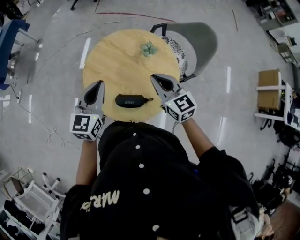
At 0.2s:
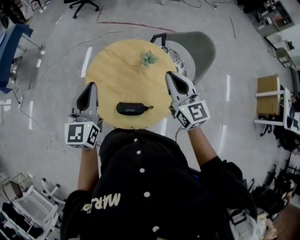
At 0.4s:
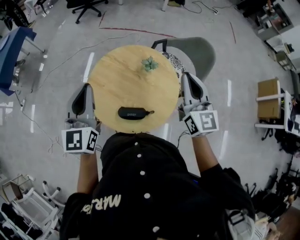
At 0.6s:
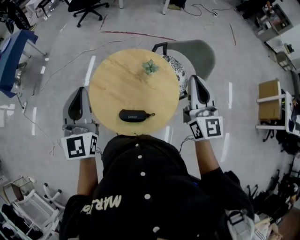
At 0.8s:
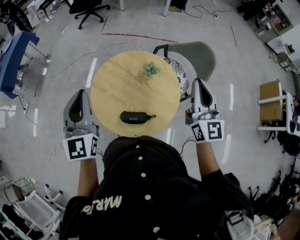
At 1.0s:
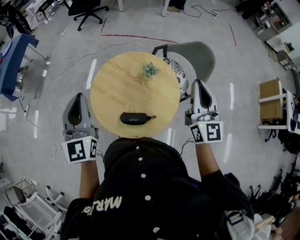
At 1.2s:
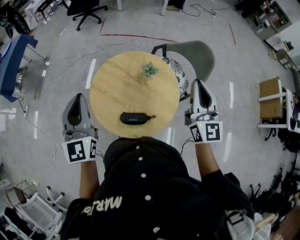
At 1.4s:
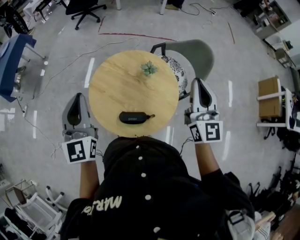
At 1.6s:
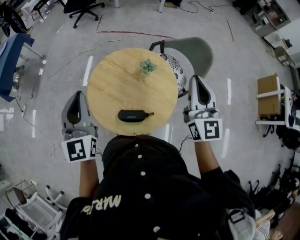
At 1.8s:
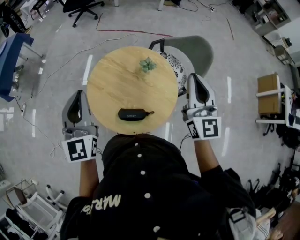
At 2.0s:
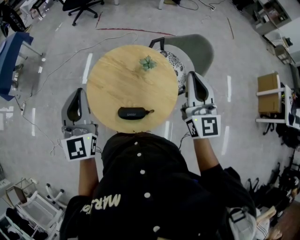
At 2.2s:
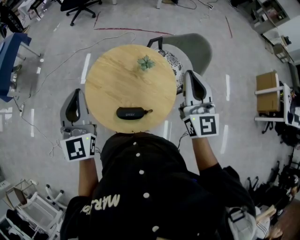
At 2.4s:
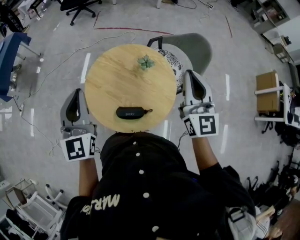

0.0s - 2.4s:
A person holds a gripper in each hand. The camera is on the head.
0.0s - 1.2s: The right gripper travels upward and to the right by approximately 25 cm, and swivels some 40 degrees. Meanwhile the left gripper is displaced upward by roughly 15 cm, and changes its angle by some 30 degrees.
1.2s - 2.4s: The grippers stay close to where they were, moving slightly.

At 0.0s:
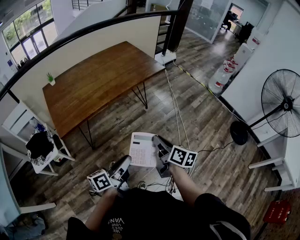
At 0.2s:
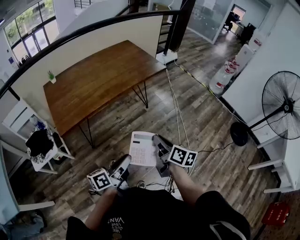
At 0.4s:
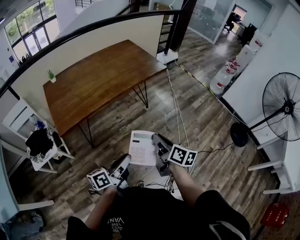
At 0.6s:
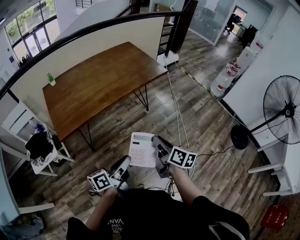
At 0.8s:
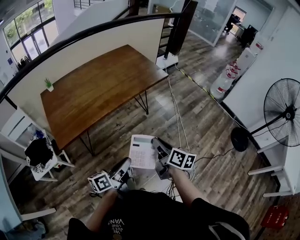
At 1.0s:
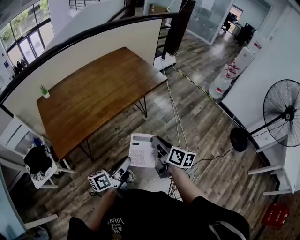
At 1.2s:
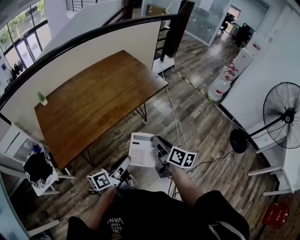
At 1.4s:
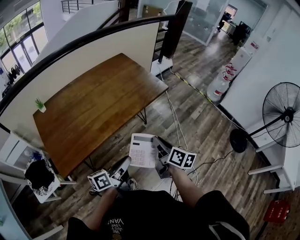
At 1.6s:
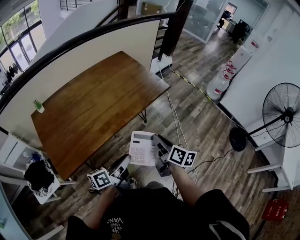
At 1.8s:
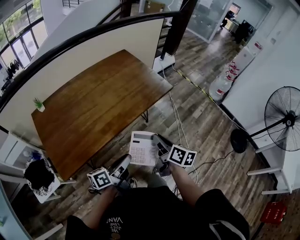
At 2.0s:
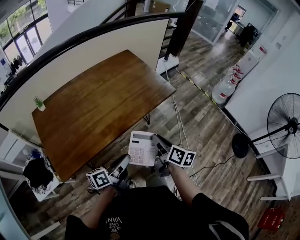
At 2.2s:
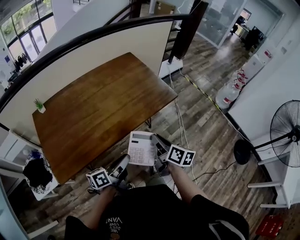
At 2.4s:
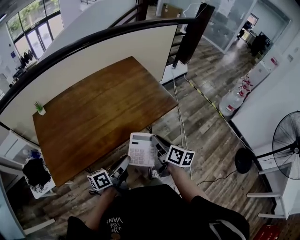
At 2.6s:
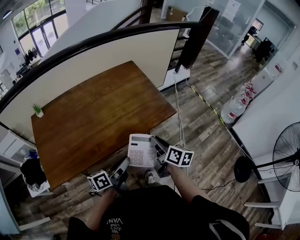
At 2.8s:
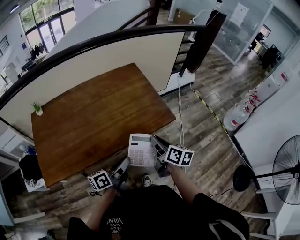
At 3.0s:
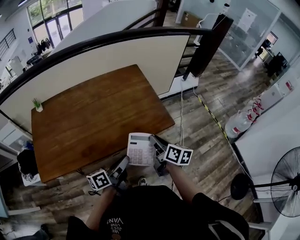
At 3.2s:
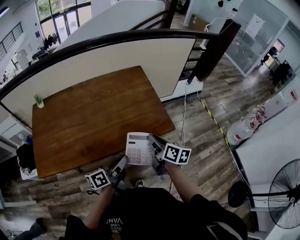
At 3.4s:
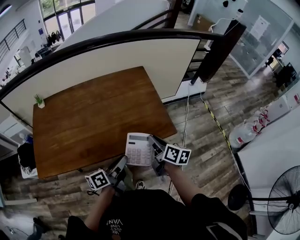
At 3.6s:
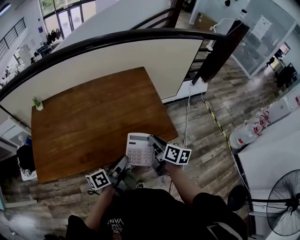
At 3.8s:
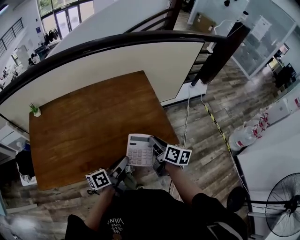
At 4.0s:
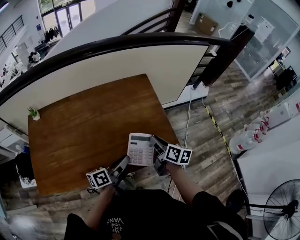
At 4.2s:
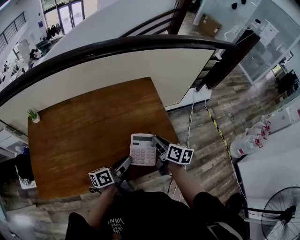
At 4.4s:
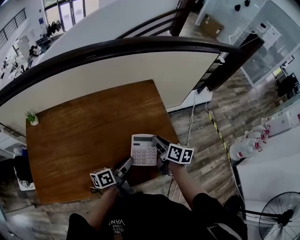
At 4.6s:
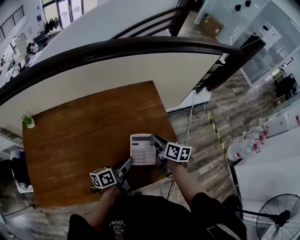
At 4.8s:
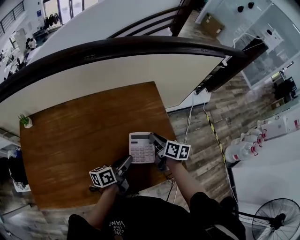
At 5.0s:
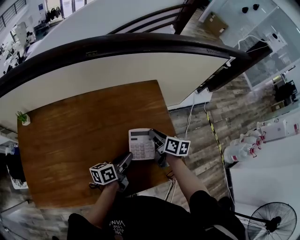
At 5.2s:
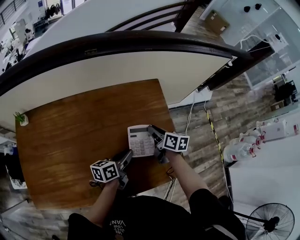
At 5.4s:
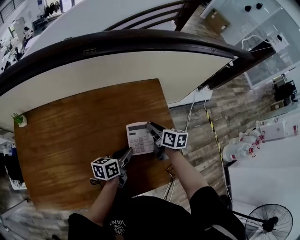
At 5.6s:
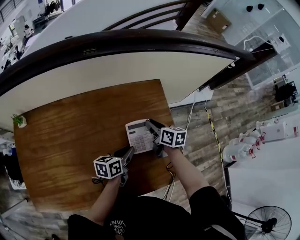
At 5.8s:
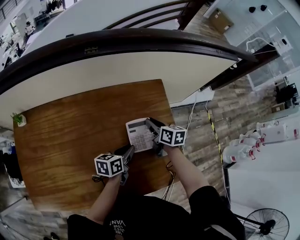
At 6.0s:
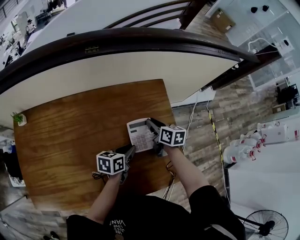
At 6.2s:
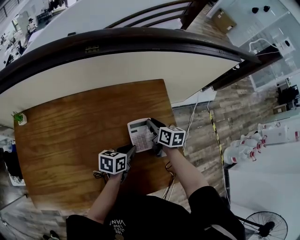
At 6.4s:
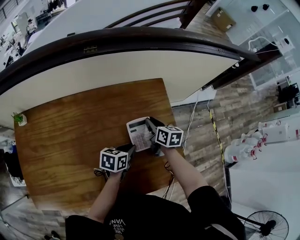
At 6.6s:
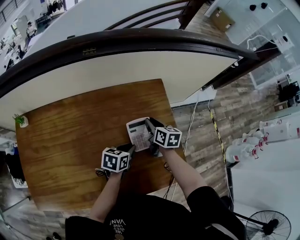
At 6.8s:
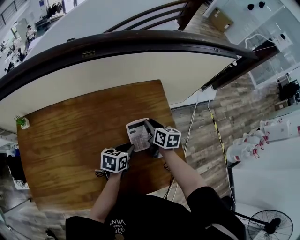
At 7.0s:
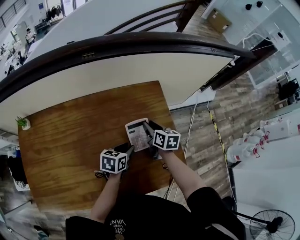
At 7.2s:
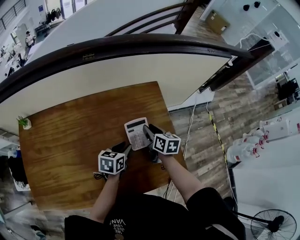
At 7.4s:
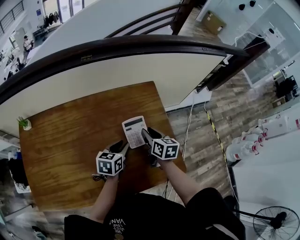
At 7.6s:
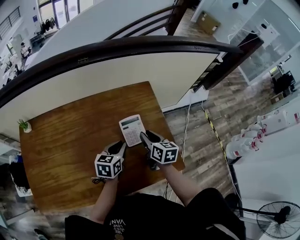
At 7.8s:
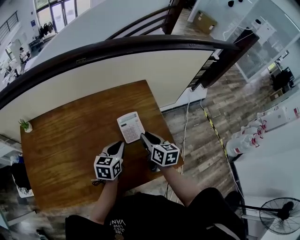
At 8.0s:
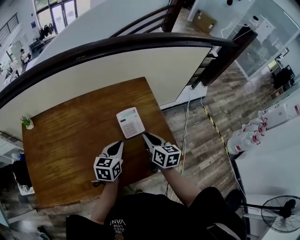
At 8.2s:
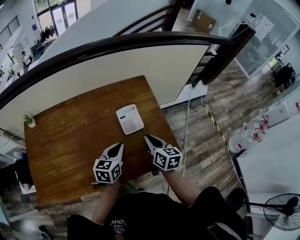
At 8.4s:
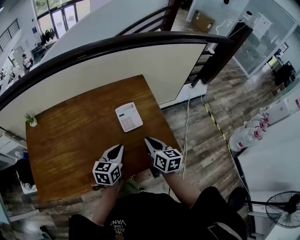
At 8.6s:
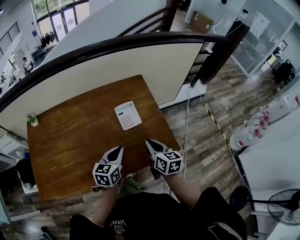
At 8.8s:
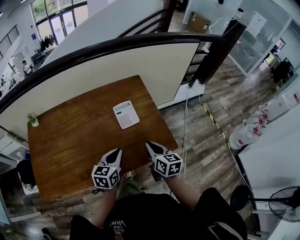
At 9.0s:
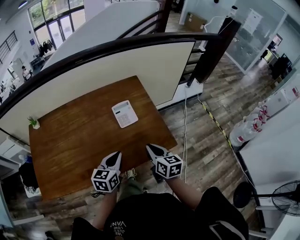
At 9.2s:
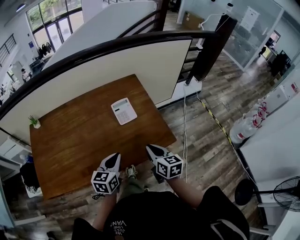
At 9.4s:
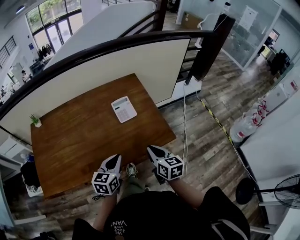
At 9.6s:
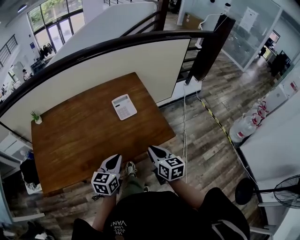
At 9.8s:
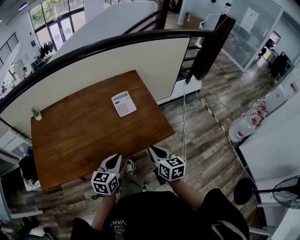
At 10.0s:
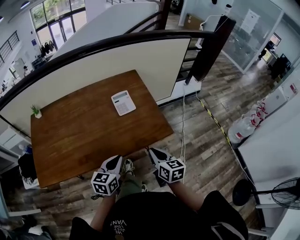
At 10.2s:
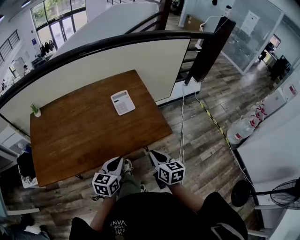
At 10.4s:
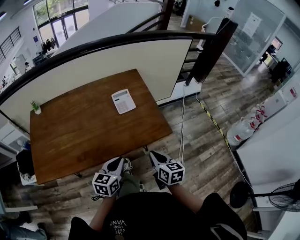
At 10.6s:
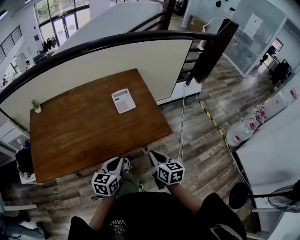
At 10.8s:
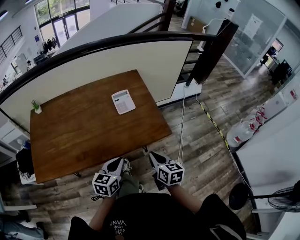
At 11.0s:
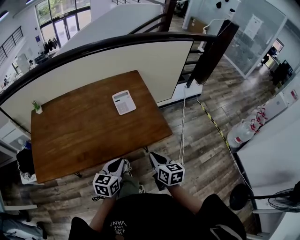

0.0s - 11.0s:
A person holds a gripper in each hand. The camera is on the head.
0.0s - 1.6s: Both grippers travel together forward, about 25 cm.
1.6s - 3.2s: The left gripper goes roughly 25 cm forward and to the right, and turns by some 20 degrees. The right gripper moves forward, some 30 cm, and rotates about 30 degrees.
3.2s - 4.8s: The grippers both shift forward by roughly 25 cm.
4.8s - 6.2s: The right gripper moves forward, approximately 10 cm. The left gripper shifts approximately 10 cm forward and downward, and swivels approximately 30 degrees.
6.2s - 7.8s: The right gripper moves backward and upward, roughly 15 cm, while the left gripper moves upward, roughly 5 cm, and turns by approximately 30 degrees.
7.8s - 9.4s: The grippers both shift backward by roughly 20 cm.
9.4s - 11.0s: The two grippers go about 5 cm backward.

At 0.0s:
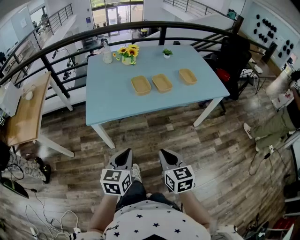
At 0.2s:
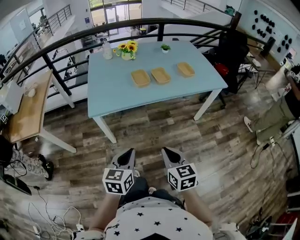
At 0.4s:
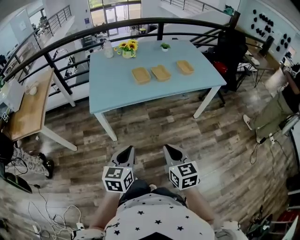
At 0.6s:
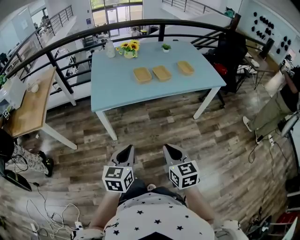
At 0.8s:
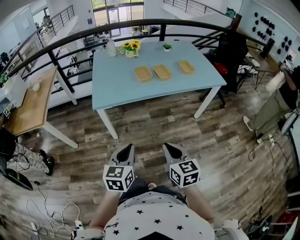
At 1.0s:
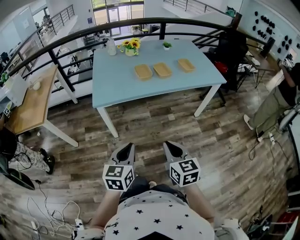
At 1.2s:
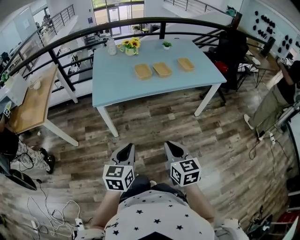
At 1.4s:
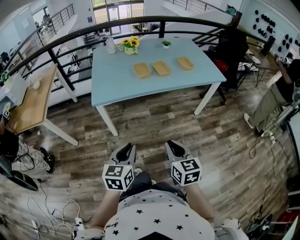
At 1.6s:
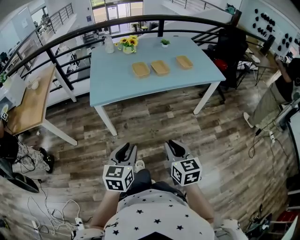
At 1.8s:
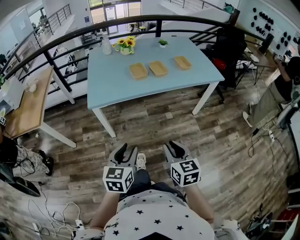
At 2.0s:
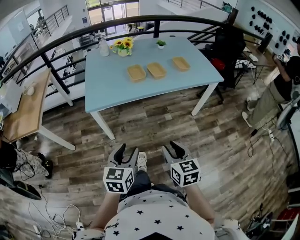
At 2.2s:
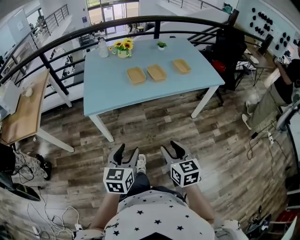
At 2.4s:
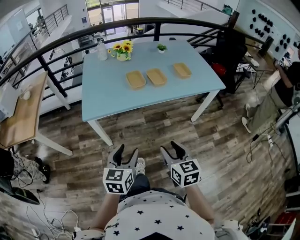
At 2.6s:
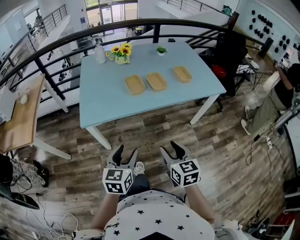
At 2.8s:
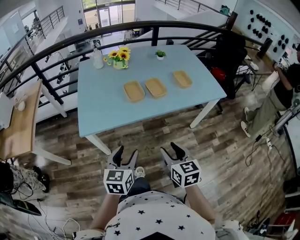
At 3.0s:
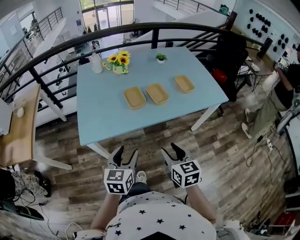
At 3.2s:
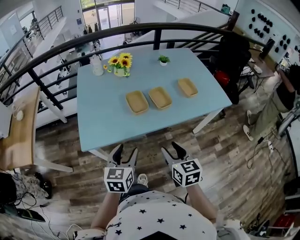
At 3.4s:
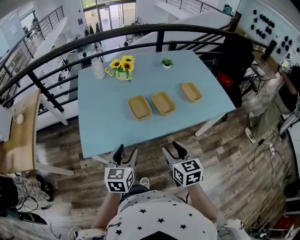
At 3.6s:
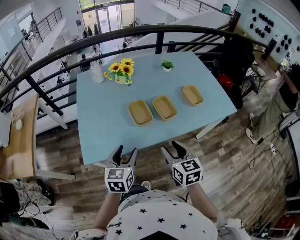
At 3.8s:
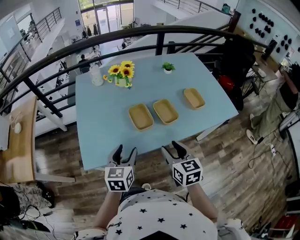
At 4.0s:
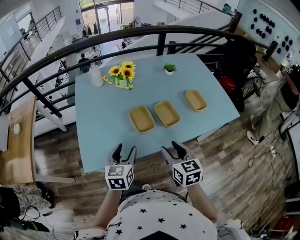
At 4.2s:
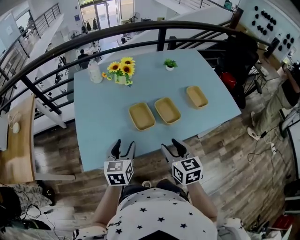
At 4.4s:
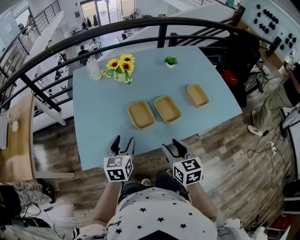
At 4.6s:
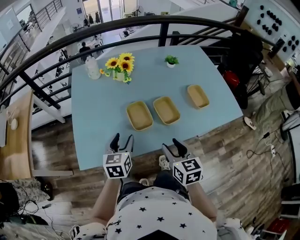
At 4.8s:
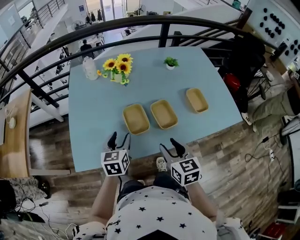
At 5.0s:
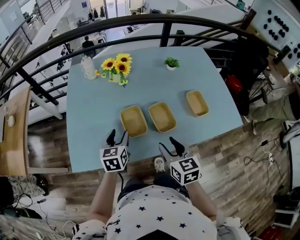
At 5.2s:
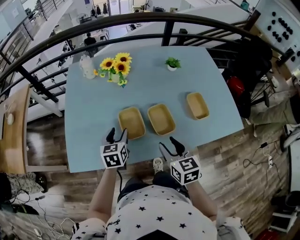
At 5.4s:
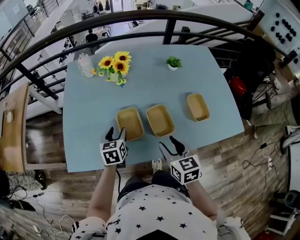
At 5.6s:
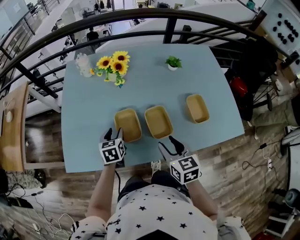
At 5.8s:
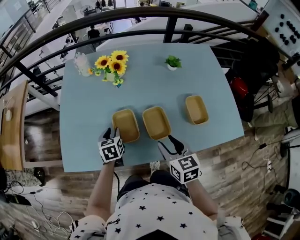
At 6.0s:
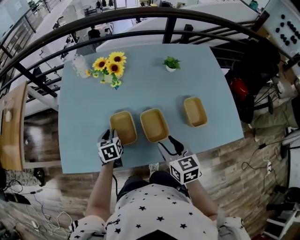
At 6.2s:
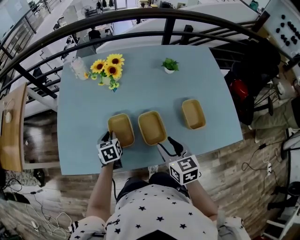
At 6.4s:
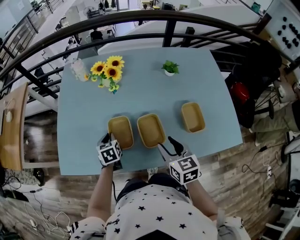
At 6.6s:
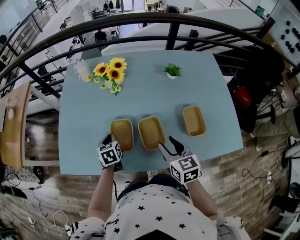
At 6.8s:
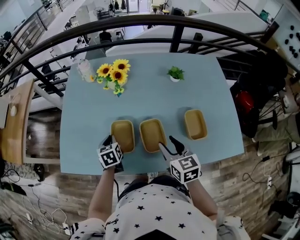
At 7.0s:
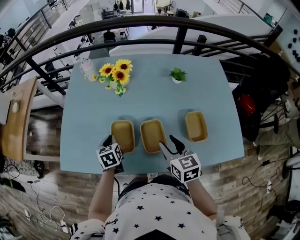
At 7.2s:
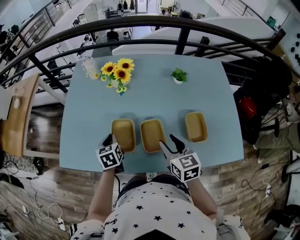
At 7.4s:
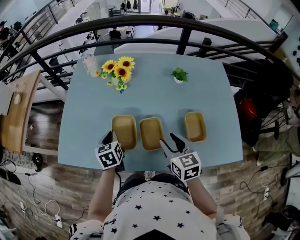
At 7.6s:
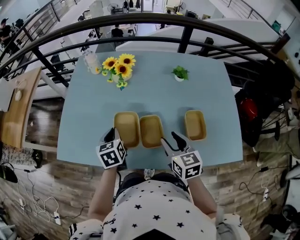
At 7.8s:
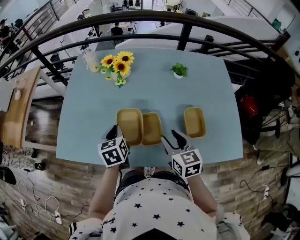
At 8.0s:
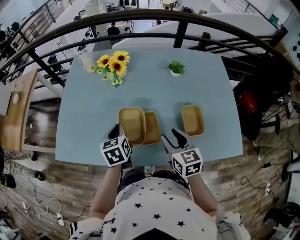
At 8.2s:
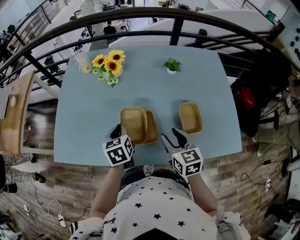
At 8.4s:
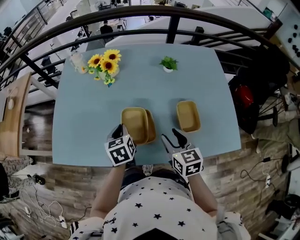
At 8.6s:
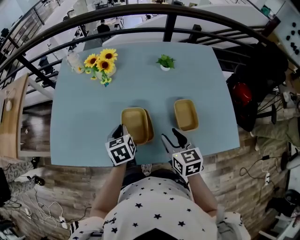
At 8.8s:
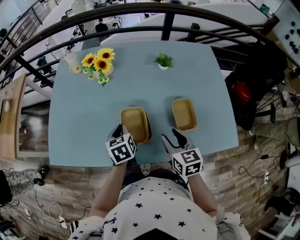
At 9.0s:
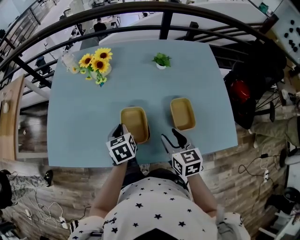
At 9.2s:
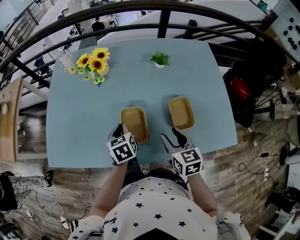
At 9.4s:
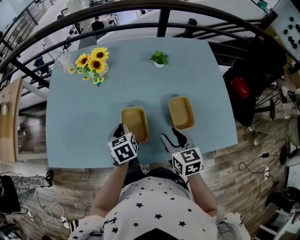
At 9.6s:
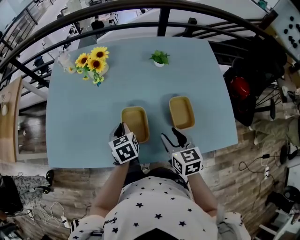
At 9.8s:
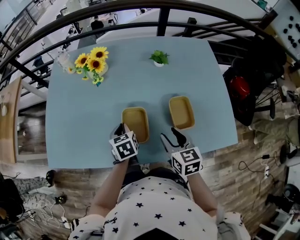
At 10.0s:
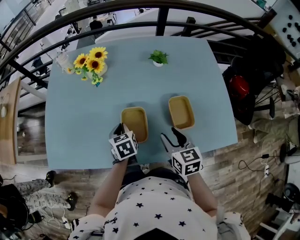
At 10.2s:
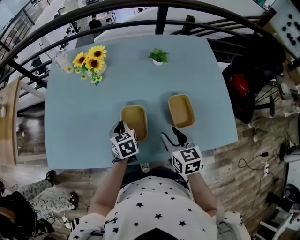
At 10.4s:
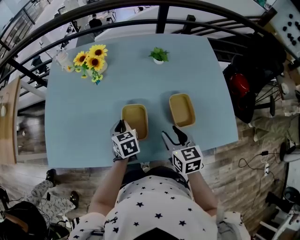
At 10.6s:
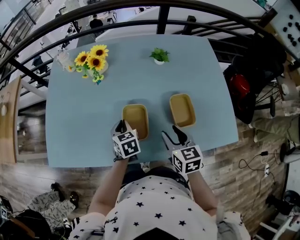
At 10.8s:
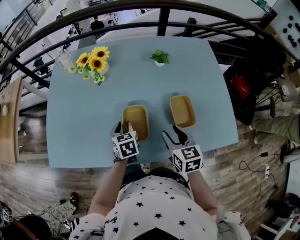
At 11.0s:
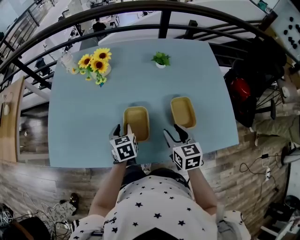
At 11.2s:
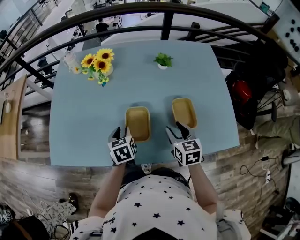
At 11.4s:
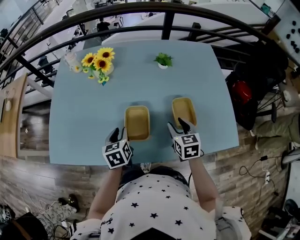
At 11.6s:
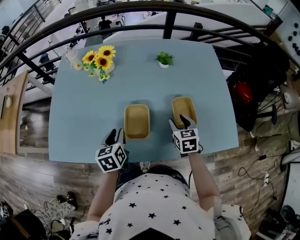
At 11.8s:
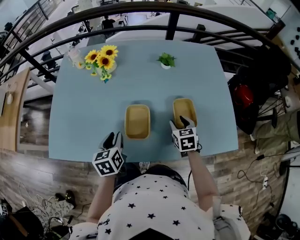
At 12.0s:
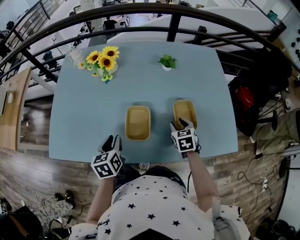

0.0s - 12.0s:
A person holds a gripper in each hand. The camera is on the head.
0.0s - 1.6s: The grippers both shift backward by approximately 15 cm. The left gripper opens its fingers.
1.6s - 3.0s: The two grippers go roughly 25 cm forward. The right gripper opens. The left gripper opens up.
3.0s - 4.4s: Both grippers move forward, approximately 20 cm.
4.4s - 6.0s: The right gripper shifts roughly 15 cm forward and to the right, while the left gripper moves forward and downward, some 20 cm, swivels some 30 degrees, and closes its fingers.
6.0s - 7.6s: The right gripper shifts some 5 cm to the right, while the left gripper travels upward by roughly 10 cm, and closes.
7.6s - 9.0s: The right gripper is displaced to the right by some 5 cm. Meanwhile the left gripper goes approximately 10 cm to the right.
9.0s - 10.4s: There are only small adjustments of the grippers.
10.4s - 12.0s: The right gripper moves downward, forward and to the right, approximately 10 cm, and changes its angle by about 20 degrees. Meanwhile the left gripper moves backward and to the left, about 10 cm, and opens up.
